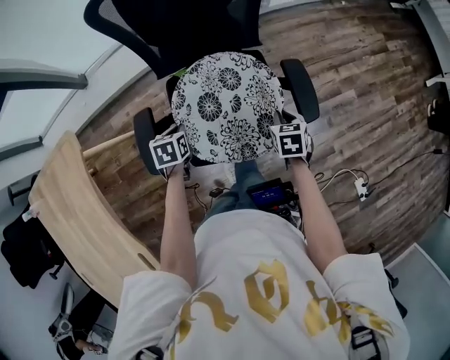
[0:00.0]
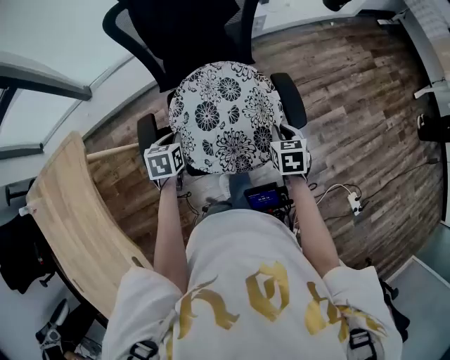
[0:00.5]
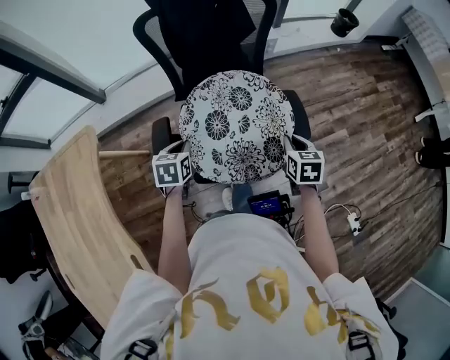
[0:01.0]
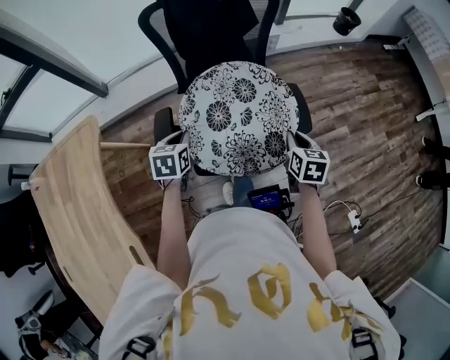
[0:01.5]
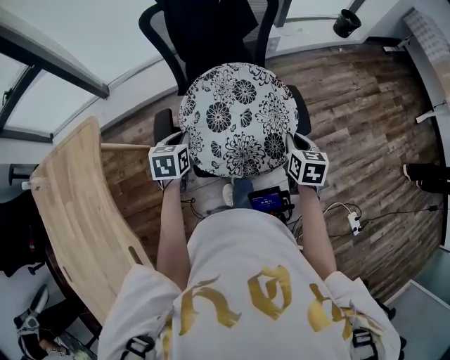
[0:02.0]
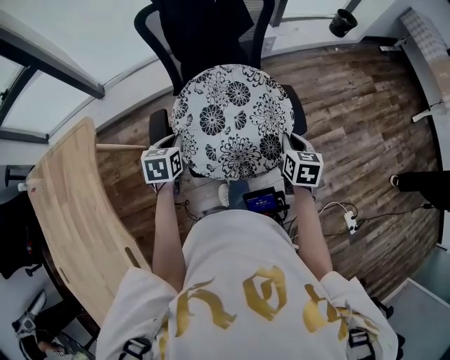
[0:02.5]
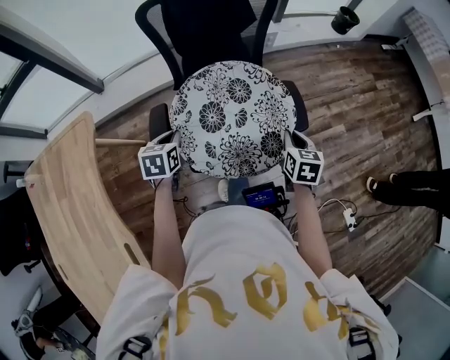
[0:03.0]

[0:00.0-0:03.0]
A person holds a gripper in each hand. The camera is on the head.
0:00.0 to 0:01.5: The left gripper is displaced upward by roughly 15 cm. The right gripper shifts approximately 15 cm upward and backward, and swivels roughly 20 degrees.
0:01.5 to 0:03.0: Both grippers stay about where they are.

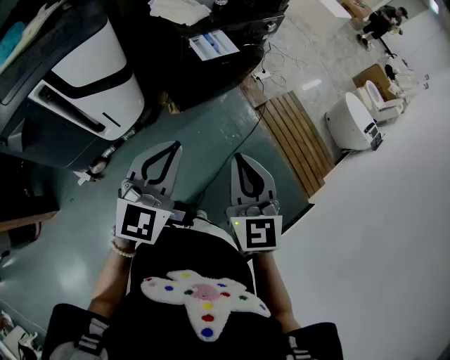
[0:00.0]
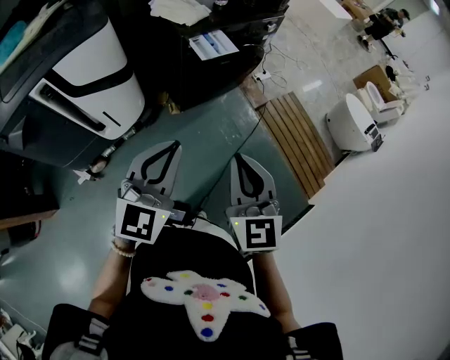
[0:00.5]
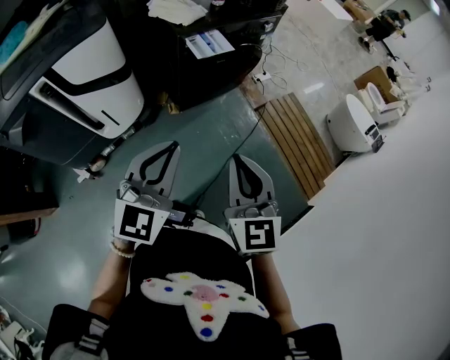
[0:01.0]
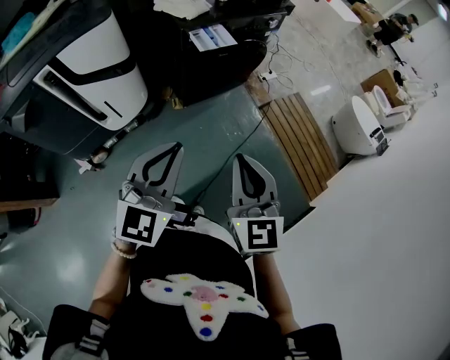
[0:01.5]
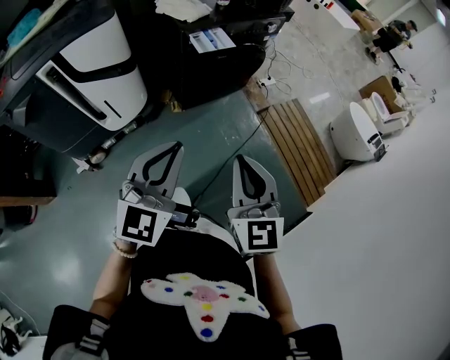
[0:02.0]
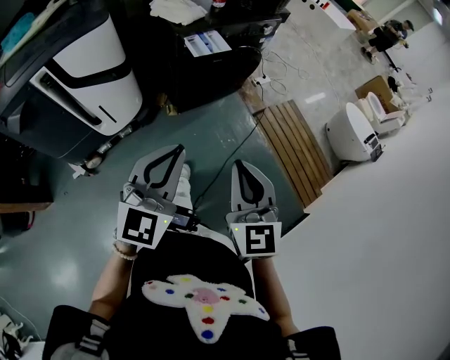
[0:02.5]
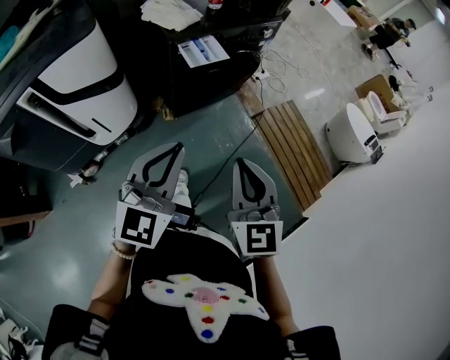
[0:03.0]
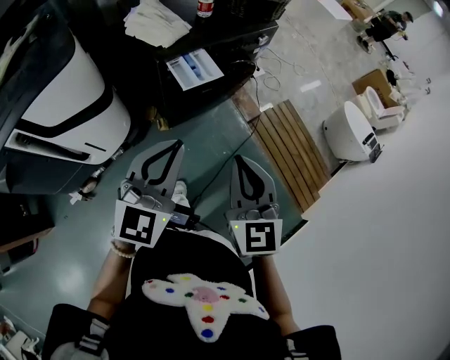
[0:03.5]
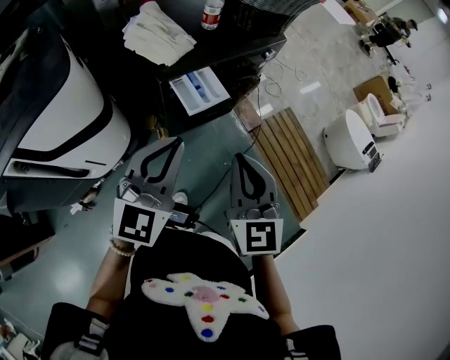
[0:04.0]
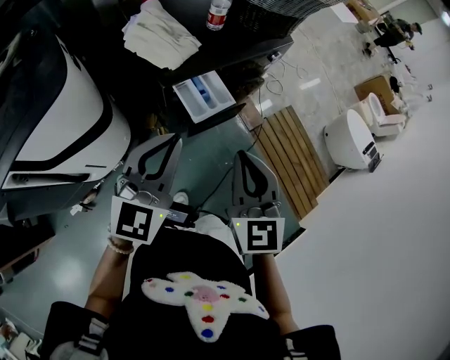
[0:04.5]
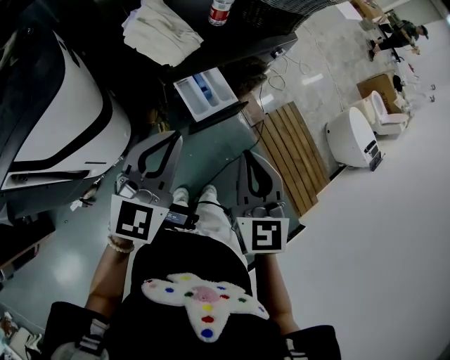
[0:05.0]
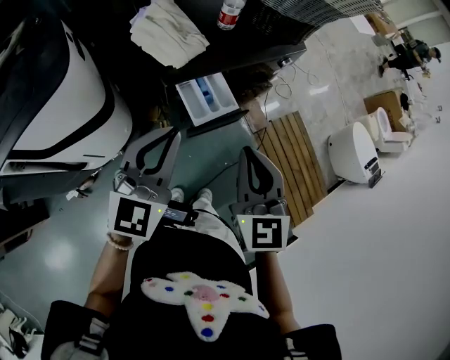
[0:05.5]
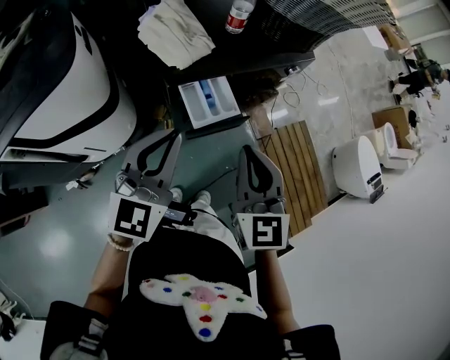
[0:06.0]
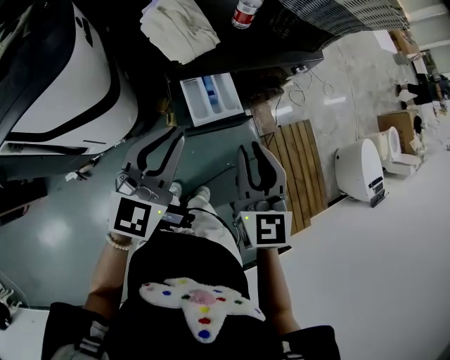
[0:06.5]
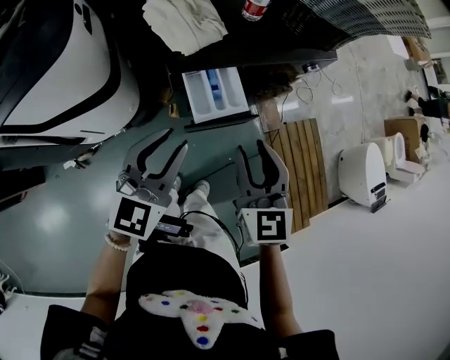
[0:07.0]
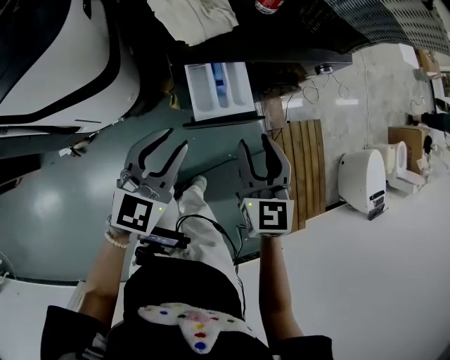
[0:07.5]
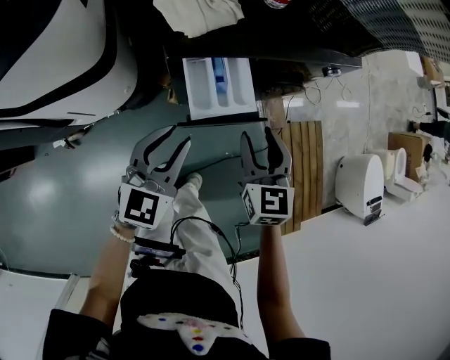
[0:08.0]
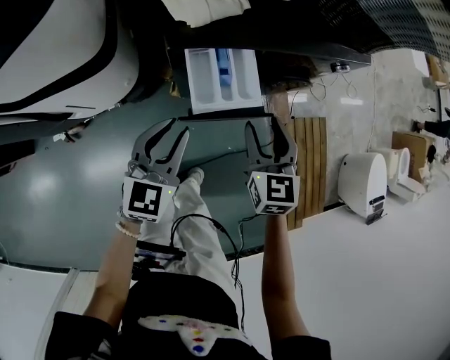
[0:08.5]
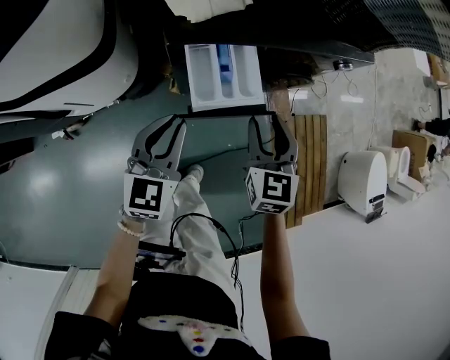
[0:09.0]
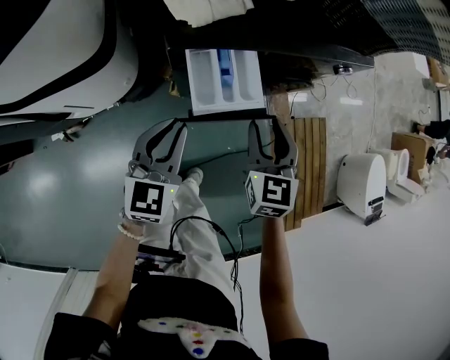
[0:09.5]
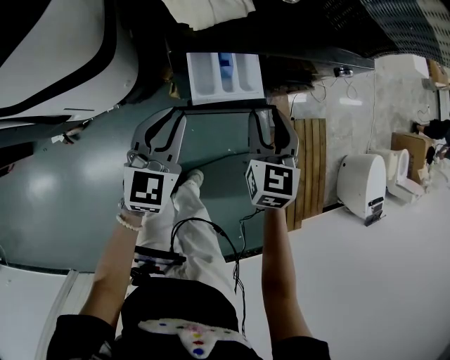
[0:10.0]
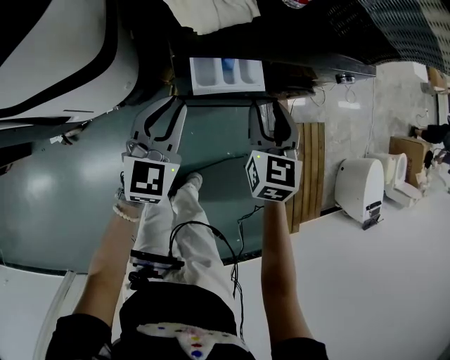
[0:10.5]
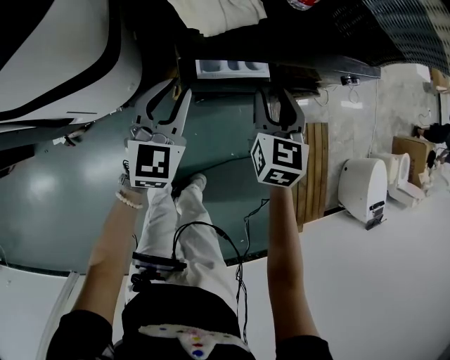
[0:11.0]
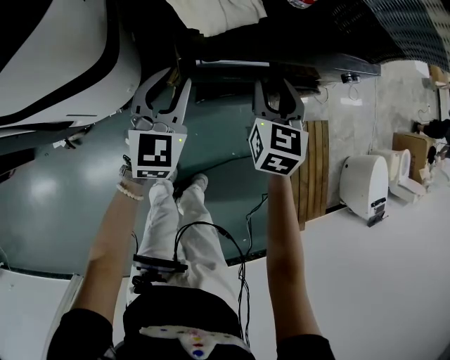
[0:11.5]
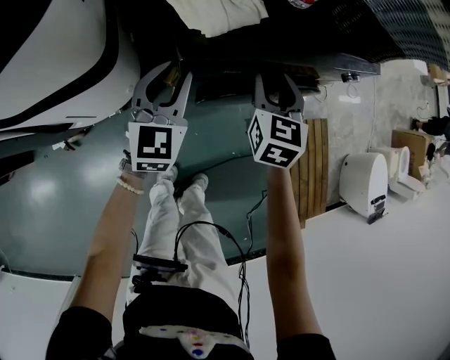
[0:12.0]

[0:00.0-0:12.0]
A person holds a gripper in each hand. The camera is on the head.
0:00.0 to 0:02.0: The left gripper travels to the right and backward by approximately 10 cm, while the right gripper heads to the right, covering approximately 5 cm.
0:02.0 to 0:04.0: The grippers both shift forward by about 30 cm.
0:04.0 to 0:06.0: The grippers both shift forward by about 10 cm.
0:06.0 to 0:08.0: The left gripper moves downward, approximately 20 cm, and opens up, while the right gripper goes approximately 20 cm downward and forward, and opens up.
0:08.0 to 0:10.0: The right gripper heads forward, covering roughly 5 cm, while the left gripper ends up roughly 5 cm from where it was.
0:10.0 to 0:12.0: The two grippers go about 10 cm forward.

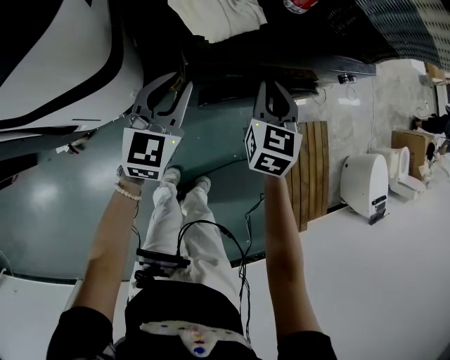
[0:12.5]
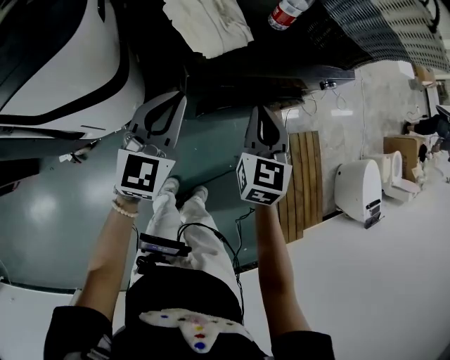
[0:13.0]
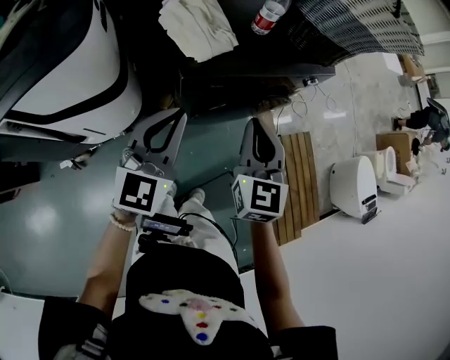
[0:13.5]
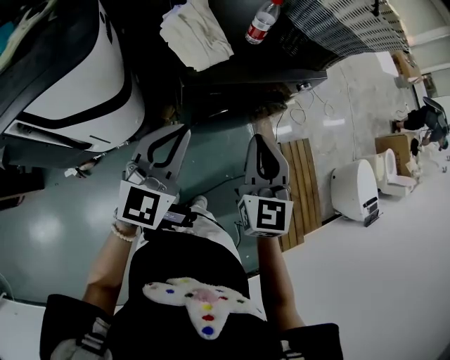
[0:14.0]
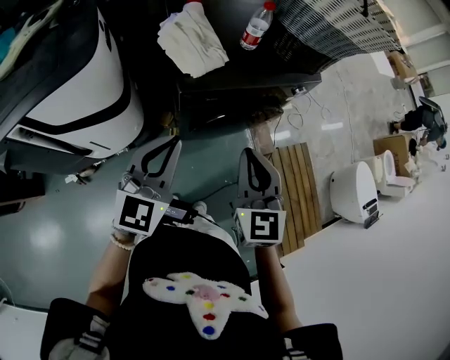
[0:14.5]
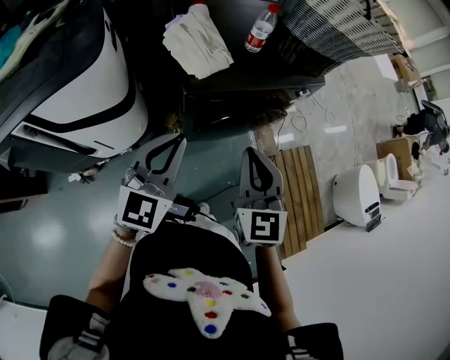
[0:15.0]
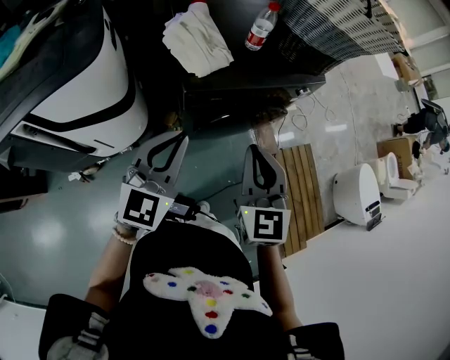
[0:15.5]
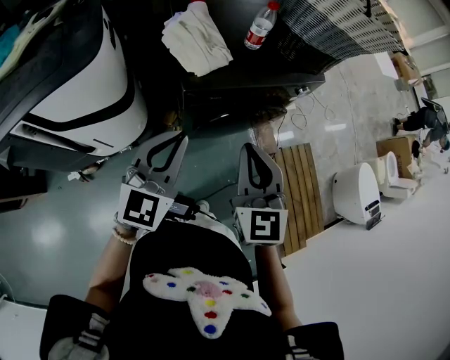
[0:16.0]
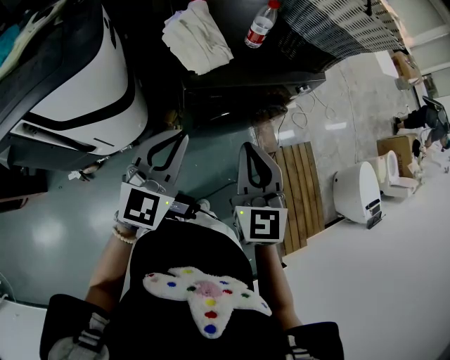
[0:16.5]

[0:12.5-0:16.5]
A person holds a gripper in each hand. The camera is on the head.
0:12.5 to 0:14.5: The right gripper heads backward and upward, covering some 30 cm; the left gripper shifts some 25 cm upward and backward.
0:14.5 to 0:16.5: The grippers stay close to where they were, moving slightly.

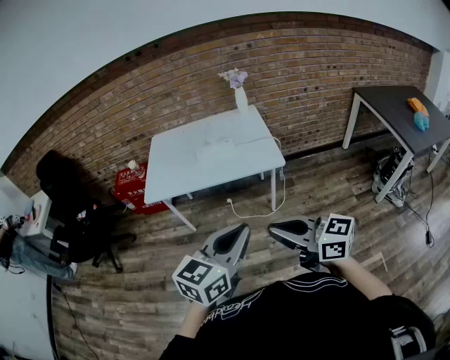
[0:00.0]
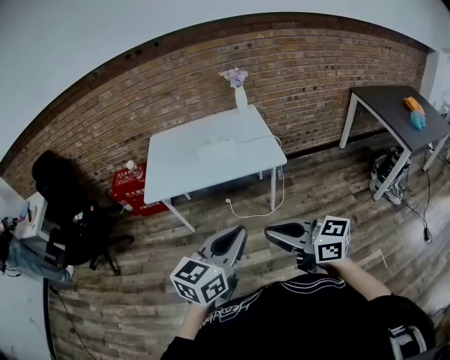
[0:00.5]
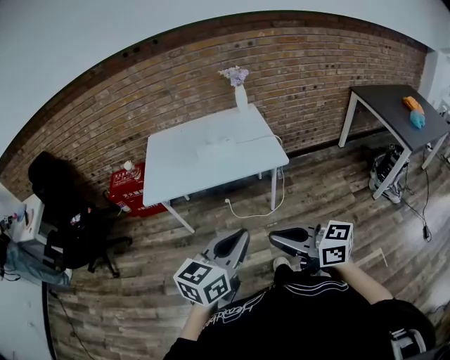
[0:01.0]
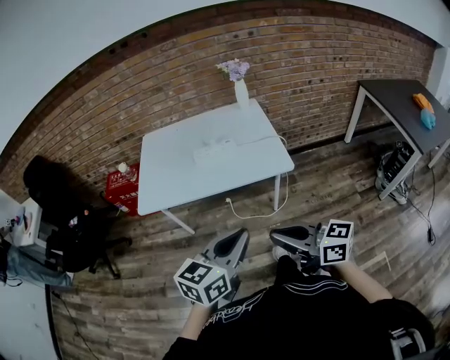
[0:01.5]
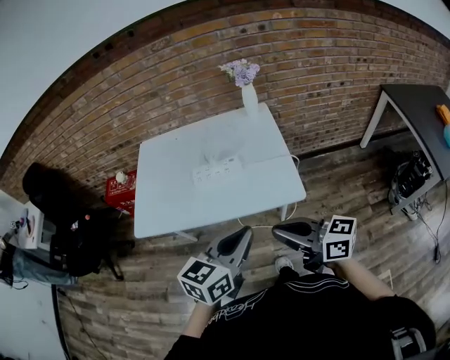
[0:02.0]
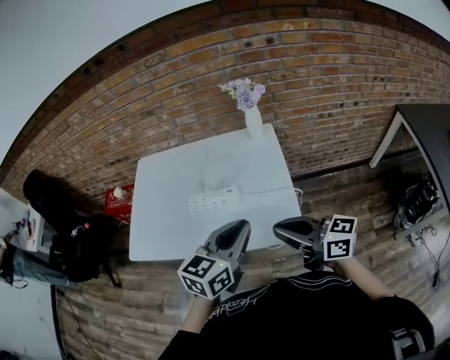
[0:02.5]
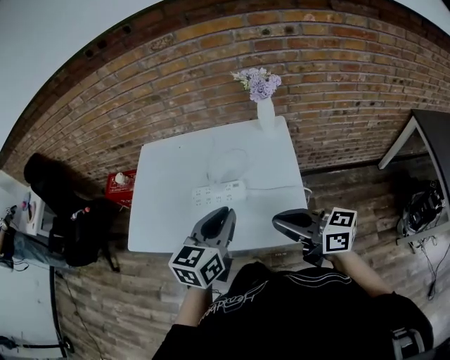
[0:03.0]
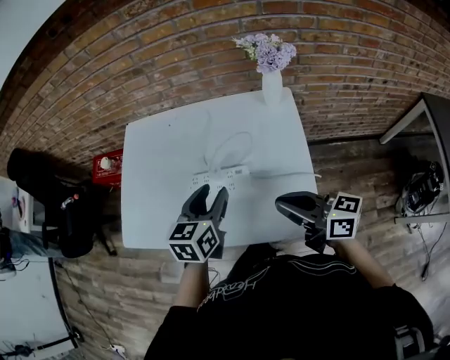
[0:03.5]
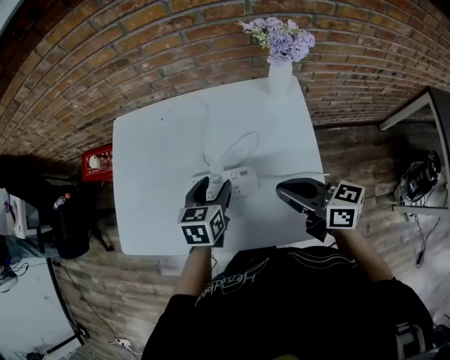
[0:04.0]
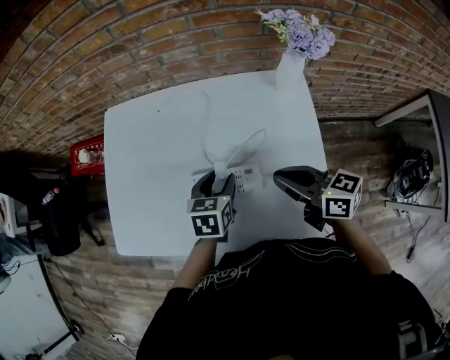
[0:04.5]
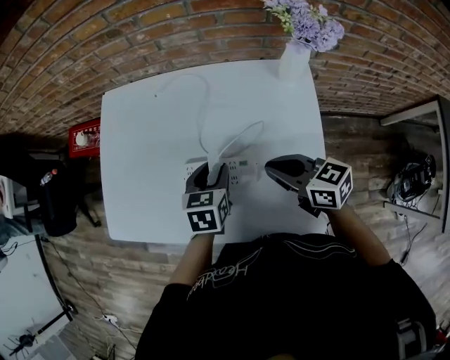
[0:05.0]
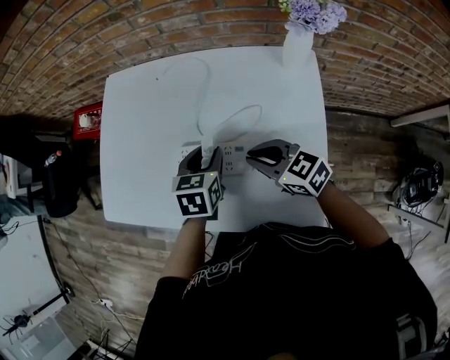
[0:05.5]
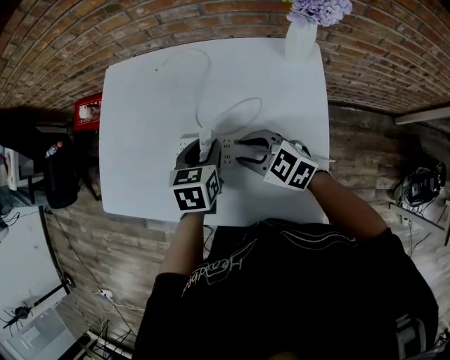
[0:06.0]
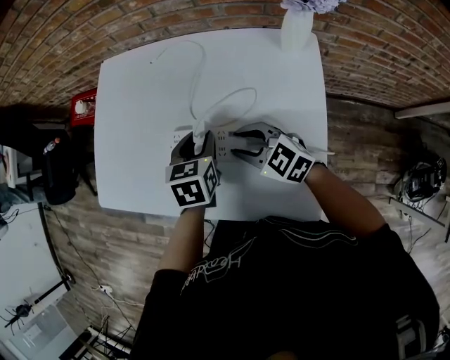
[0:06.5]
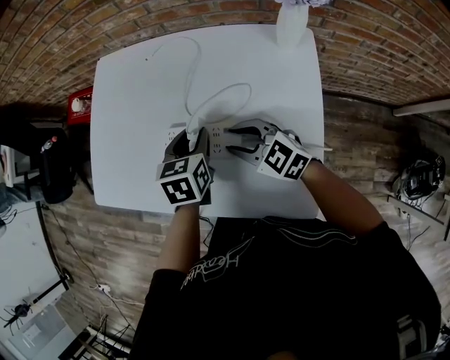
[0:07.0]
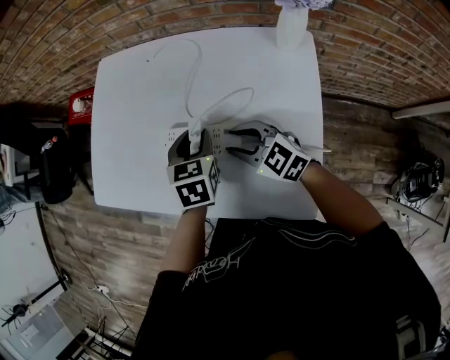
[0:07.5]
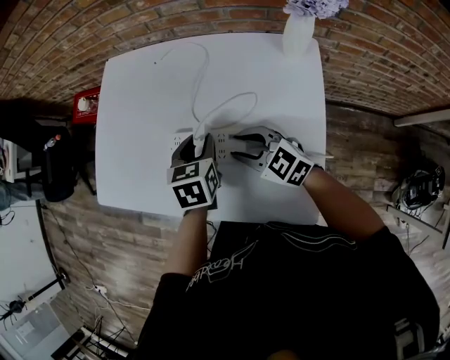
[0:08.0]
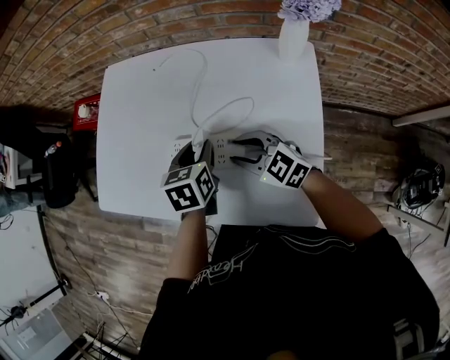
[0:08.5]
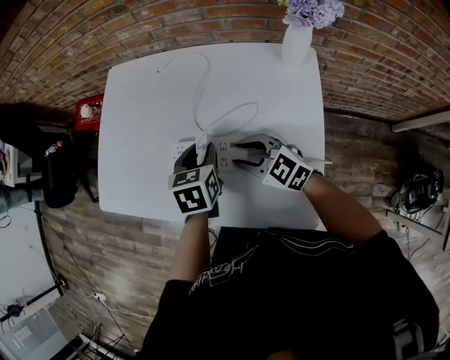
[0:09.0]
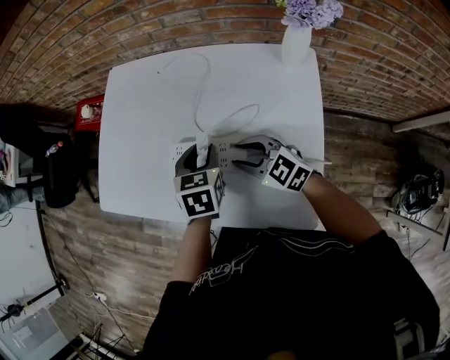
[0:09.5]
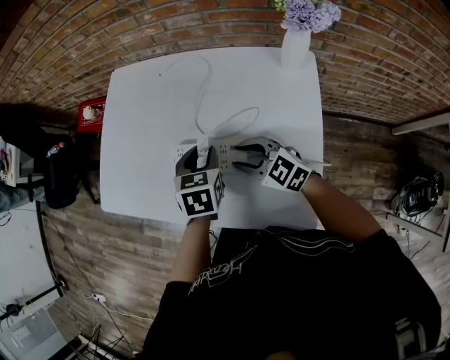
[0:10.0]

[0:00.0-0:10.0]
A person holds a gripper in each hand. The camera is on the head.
0:00.0 to 0:02.0: The two grippers go about 30 cm forward.
0:02.0 to 0:04.0: The left gripper goes approximately 40 cm forward and downward, changes its angle by roughly 30 degrees, and opens its fingers. The right gripper heads forward, covering roughly 35 cm.
0:04.0 to 0:06.0: The right gripper moves downward, forward and to the left, about 15 cm, rotates around the line of its fingers by some 40 degrees, counterclockwise from behind, and opens its fingers, while the left gripper closes up.
0:06.0 to 0:10.0: The grippers stay close to where they were, moving slightly.
